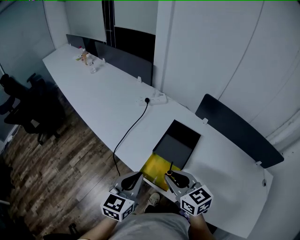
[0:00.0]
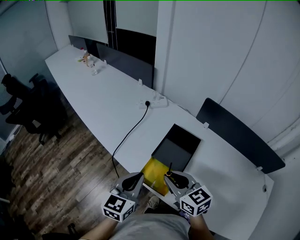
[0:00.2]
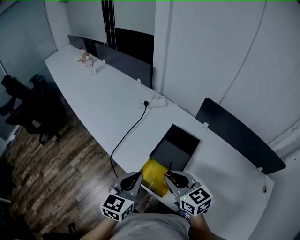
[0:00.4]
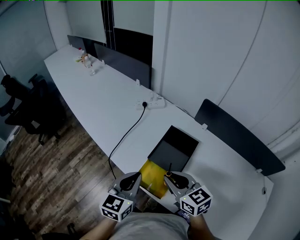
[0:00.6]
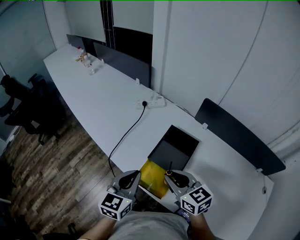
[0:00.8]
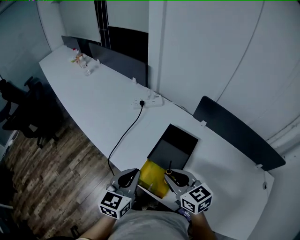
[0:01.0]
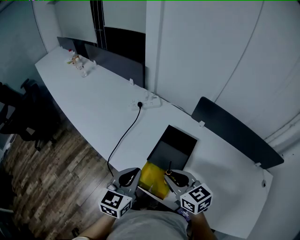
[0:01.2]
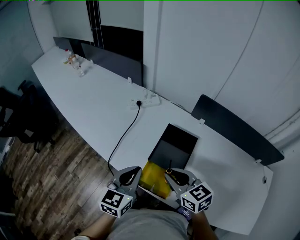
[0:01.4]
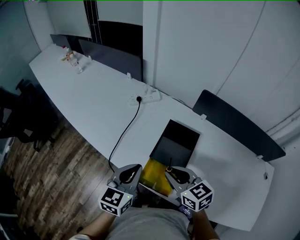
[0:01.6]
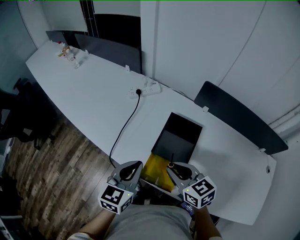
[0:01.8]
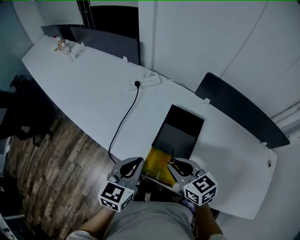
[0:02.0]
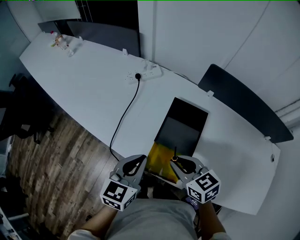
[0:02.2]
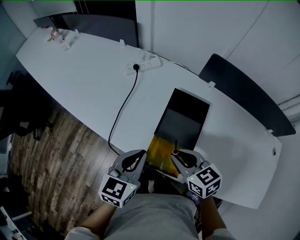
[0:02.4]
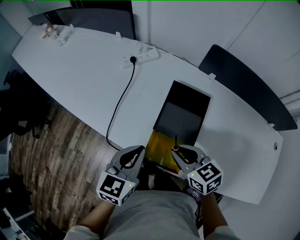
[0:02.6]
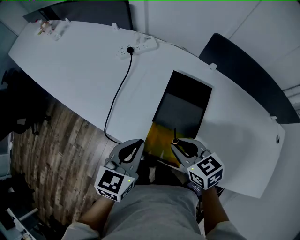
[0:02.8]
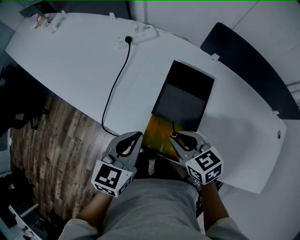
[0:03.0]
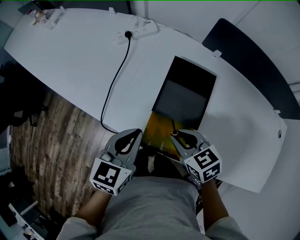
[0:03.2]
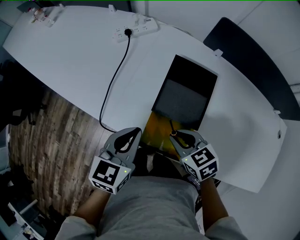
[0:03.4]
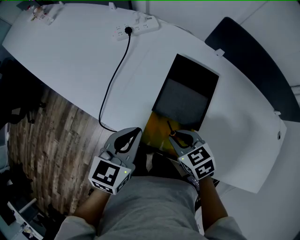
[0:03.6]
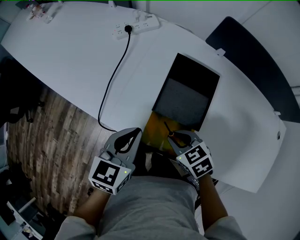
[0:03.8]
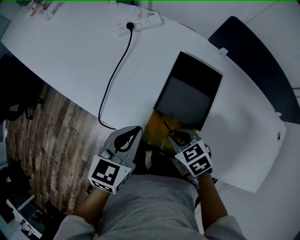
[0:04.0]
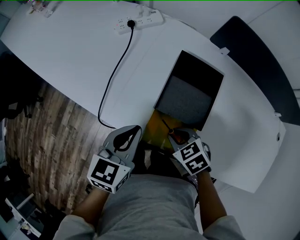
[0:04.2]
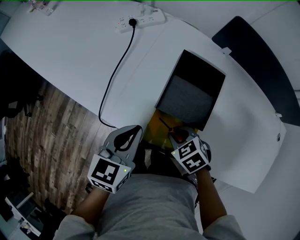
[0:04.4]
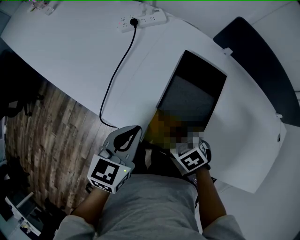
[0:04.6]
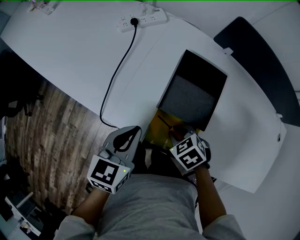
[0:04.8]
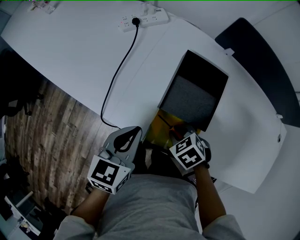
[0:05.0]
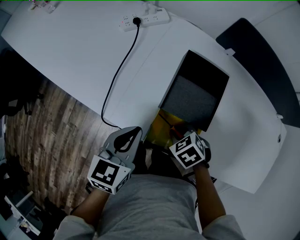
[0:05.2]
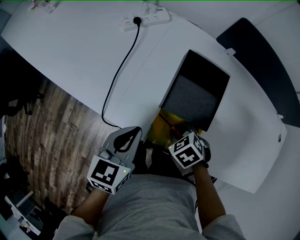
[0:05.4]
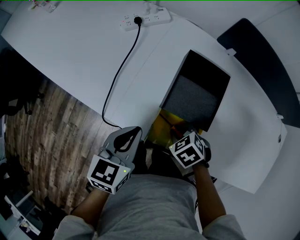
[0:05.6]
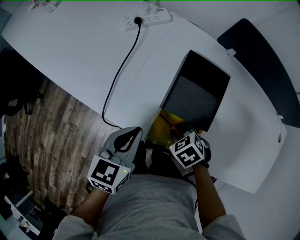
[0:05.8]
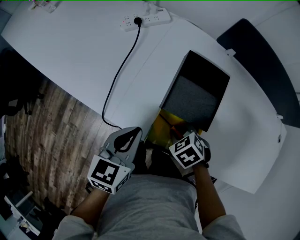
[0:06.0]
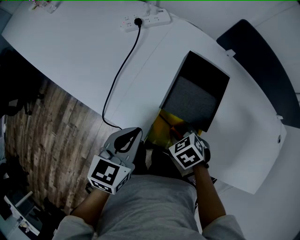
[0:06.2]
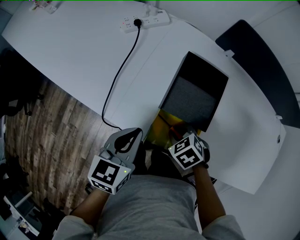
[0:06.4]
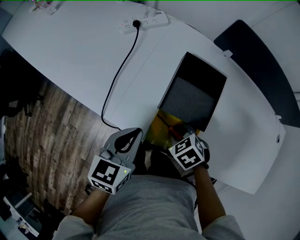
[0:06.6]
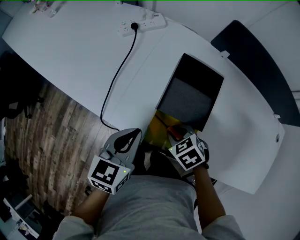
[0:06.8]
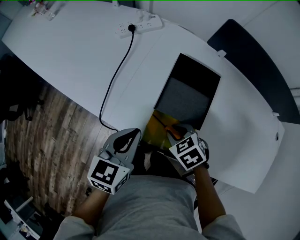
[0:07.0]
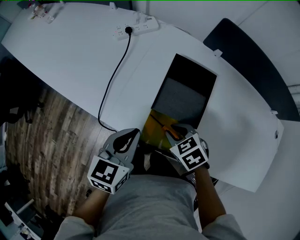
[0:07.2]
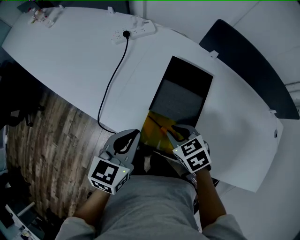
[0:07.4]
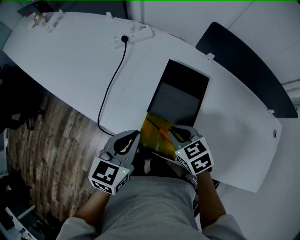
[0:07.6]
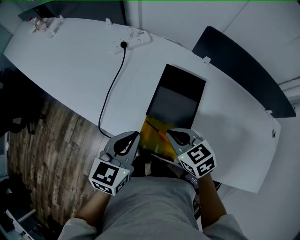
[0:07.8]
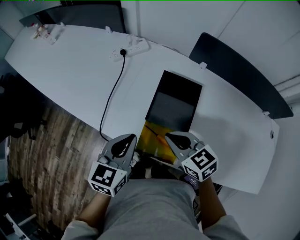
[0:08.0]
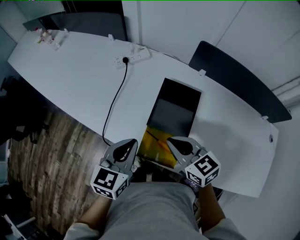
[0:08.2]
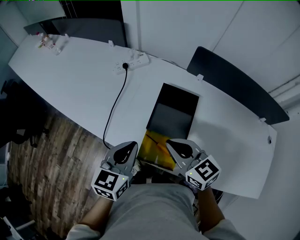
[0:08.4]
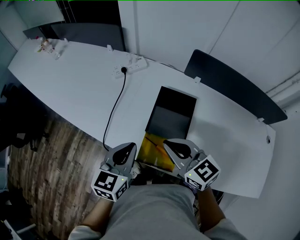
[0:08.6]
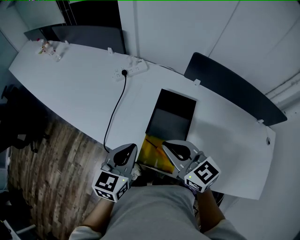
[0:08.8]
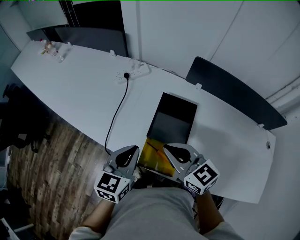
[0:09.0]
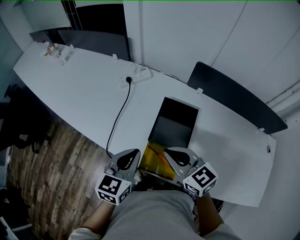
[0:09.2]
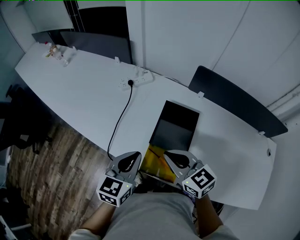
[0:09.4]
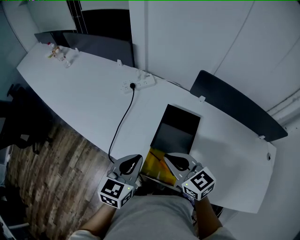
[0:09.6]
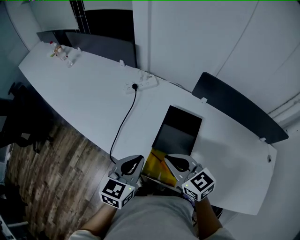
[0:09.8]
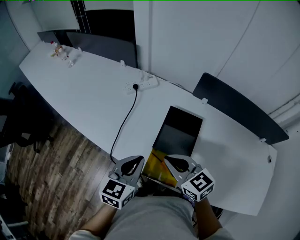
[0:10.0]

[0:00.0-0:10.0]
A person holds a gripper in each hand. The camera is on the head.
0.0 to 1.4 s: Both grippers travel together forward, roughly 5 cm.
1.4 to 2.8 s: The grippers both shift downward by some 10 cm.
2.8 to 4.2 s: The right gripper goes roughly 10 cm downward, and changes its angle by about 30 degrees. Meanwhile the left gripper ends up about 5 cm from where it was.
4.2 to 5.8 s: The grippers make only small movements.
5.8 to 7.2 s: The right gripper shifts approximately 5 cm upward.
7.2 to 8.6 s: The left gripper moves upward, about 5 cm. The right gripper travels upward by about 20 cm, tips its fingers upward by roughly 40 degrees, and closes its fingers.
8.6 to 10.0 s: There are only small adjustments of the grippers.

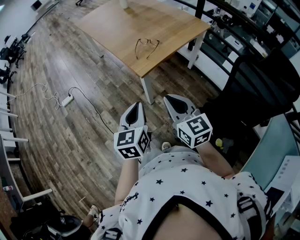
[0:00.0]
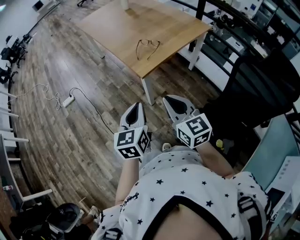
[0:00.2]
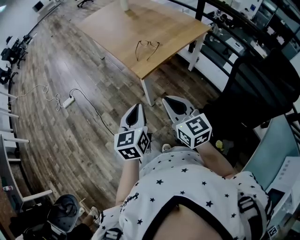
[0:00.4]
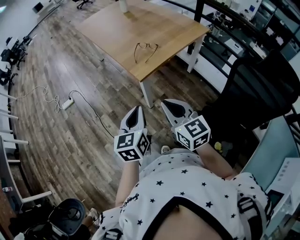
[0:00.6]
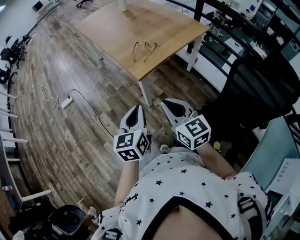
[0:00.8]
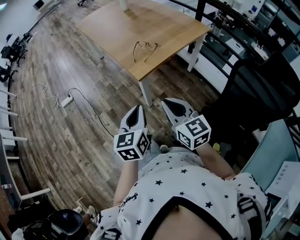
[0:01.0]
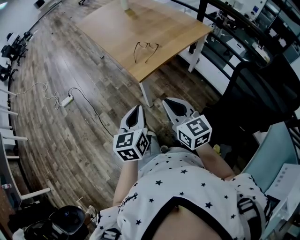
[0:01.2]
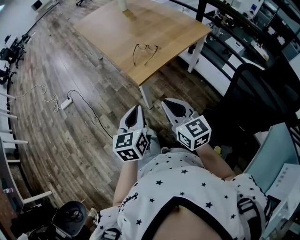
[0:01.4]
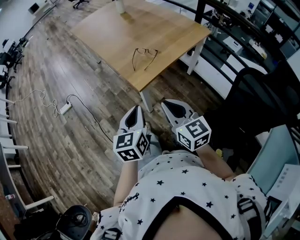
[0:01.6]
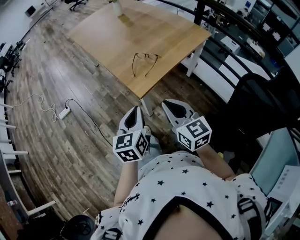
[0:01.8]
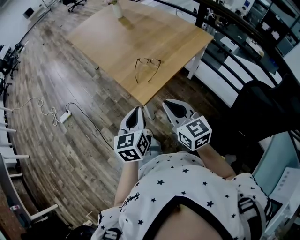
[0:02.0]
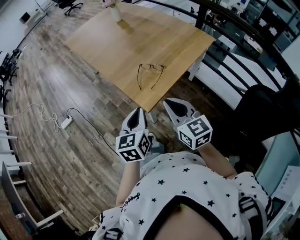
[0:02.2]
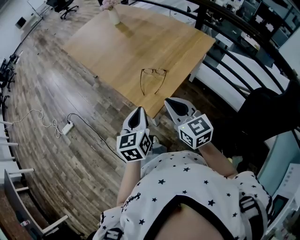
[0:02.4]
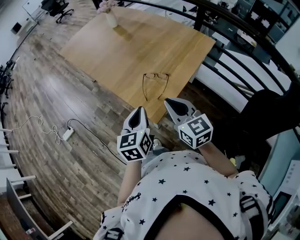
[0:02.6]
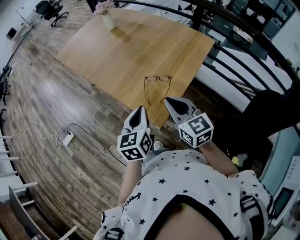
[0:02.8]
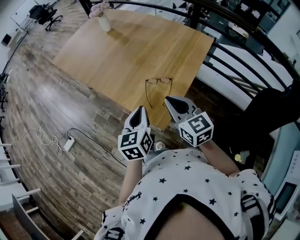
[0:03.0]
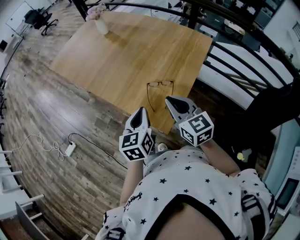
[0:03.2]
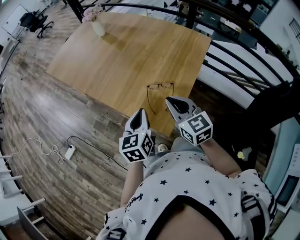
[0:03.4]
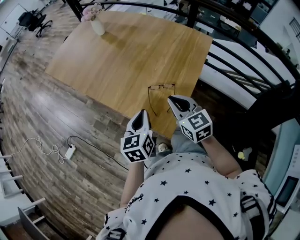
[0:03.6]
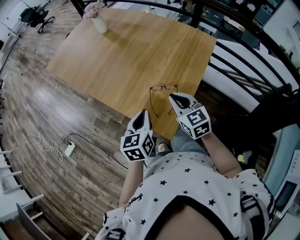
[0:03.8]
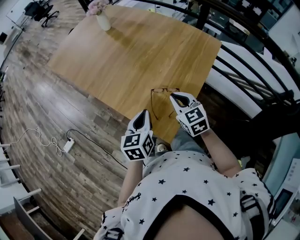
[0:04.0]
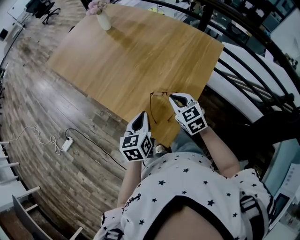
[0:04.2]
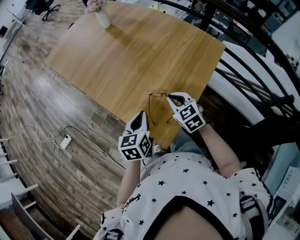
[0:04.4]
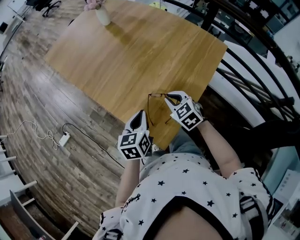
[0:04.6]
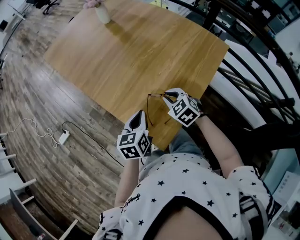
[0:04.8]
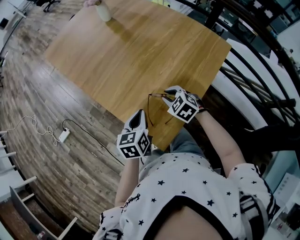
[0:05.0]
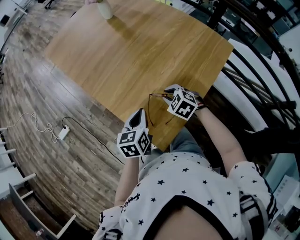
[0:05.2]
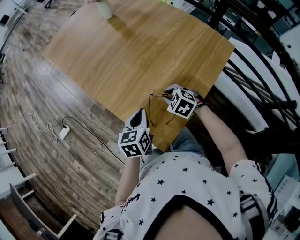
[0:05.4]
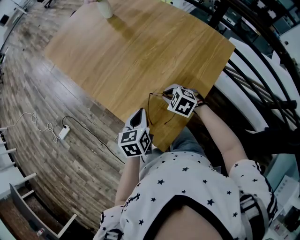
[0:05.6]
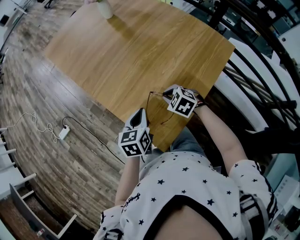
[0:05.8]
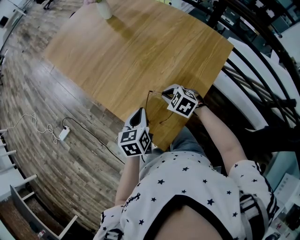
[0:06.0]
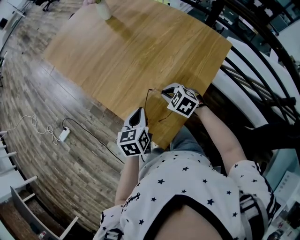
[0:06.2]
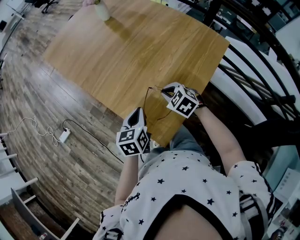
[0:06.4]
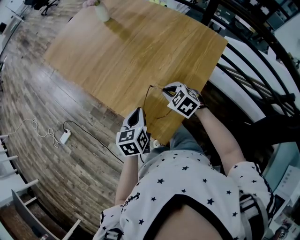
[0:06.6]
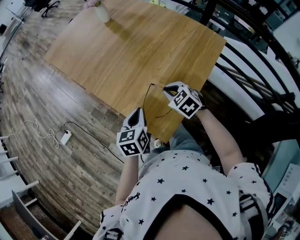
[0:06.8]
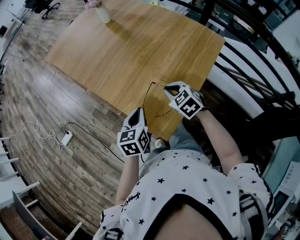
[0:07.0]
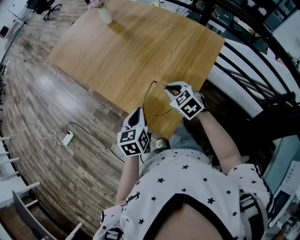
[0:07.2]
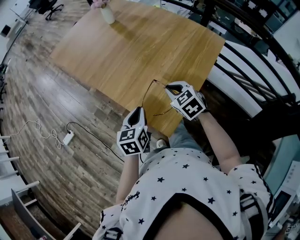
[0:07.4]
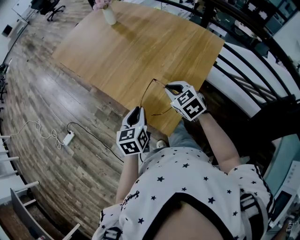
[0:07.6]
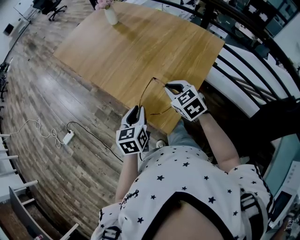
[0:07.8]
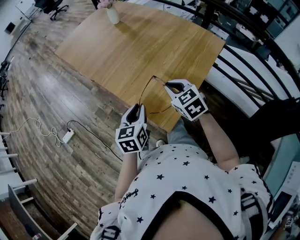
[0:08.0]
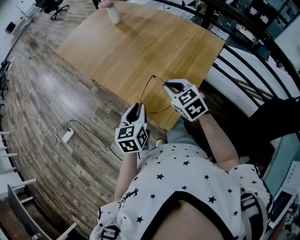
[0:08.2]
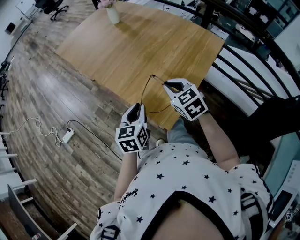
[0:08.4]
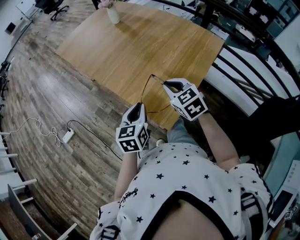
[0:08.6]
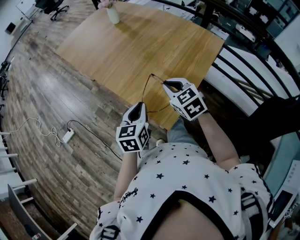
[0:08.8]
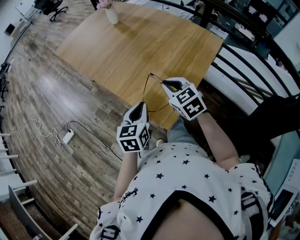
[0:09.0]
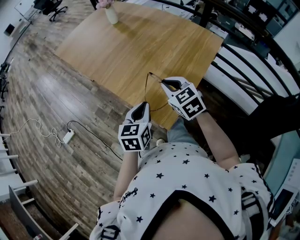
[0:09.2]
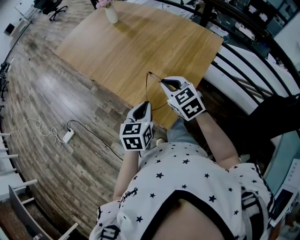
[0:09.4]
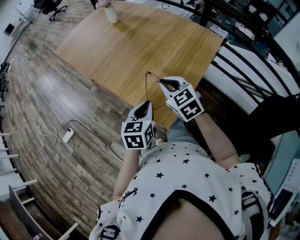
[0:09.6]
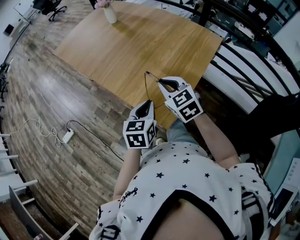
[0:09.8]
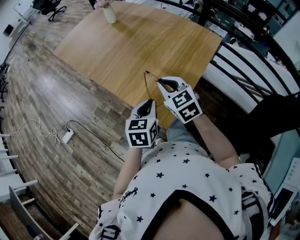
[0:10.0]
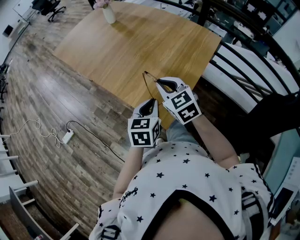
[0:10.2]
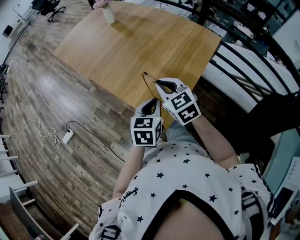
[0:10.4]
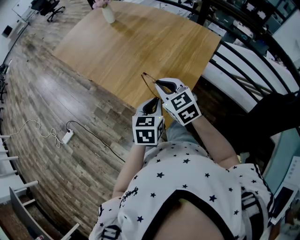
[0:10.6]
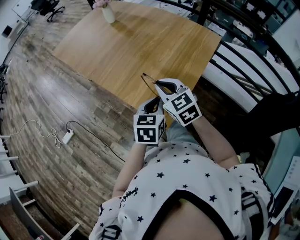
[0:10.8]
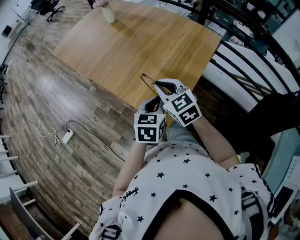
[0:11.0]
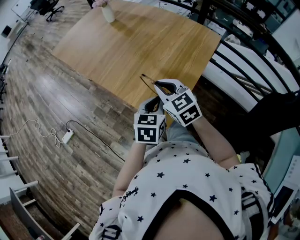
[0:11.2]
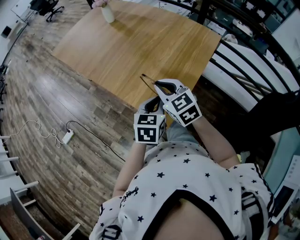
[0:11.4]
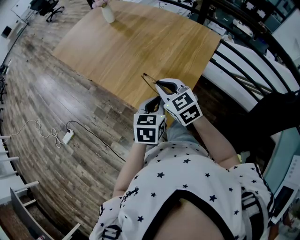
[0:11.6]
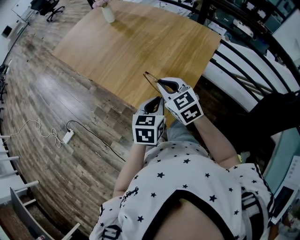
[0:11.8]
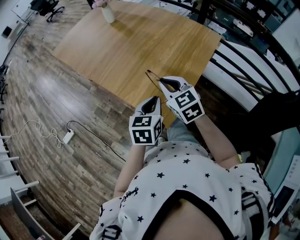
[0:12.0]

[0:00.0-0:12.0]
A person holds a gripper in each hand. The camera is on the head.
0.0 to 1.6 s: Both grippers travel together forward, roughly 5 cm.
1.6 to 3.0 s: Both grippers move forward, roughly 25 cm.
3.0 to 4.4 s: The left gripper shifts about 10 cm forward and downward. Meanwhile the right gripper goes roughly 20 cm forward and downward, and turns by roughly 30 degrees.
4.4 to 6.0 s: The right gripper travels downward by about 5 cm, and swivels some 30 degrees.
6.0 to 7.6 s: The left gripper heads backward, covering roughly 5 cm. Meanwhile the right gripper shifts about 10 cm upward and backward, and rotates about 30 degrees.
7.6 to 9.0 s: The grippers stay close to where they were, moving slightly.
9.0 to 10.4 s: The left gripper heads to the right, covering about 5 cm.
10.4 to 12.0 s: There are only small adjustments of the grippers.

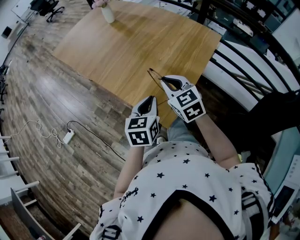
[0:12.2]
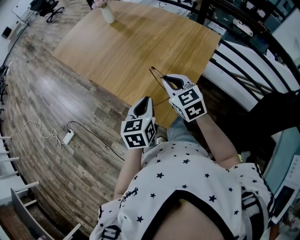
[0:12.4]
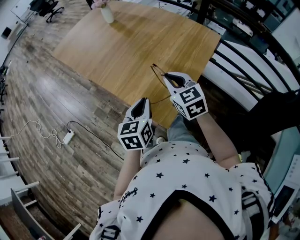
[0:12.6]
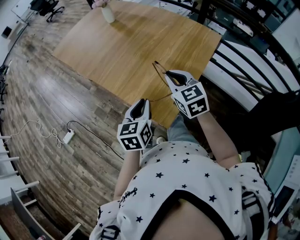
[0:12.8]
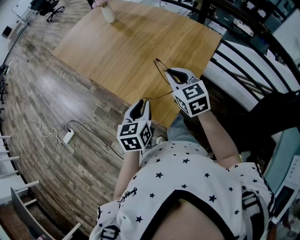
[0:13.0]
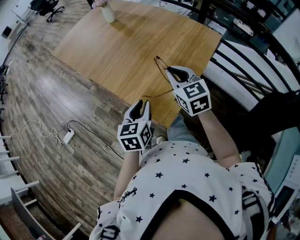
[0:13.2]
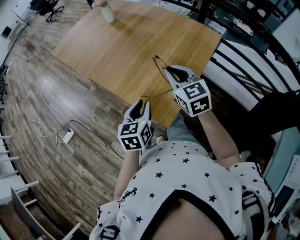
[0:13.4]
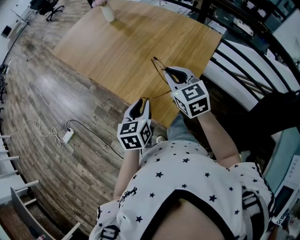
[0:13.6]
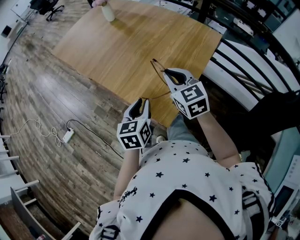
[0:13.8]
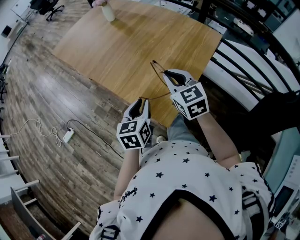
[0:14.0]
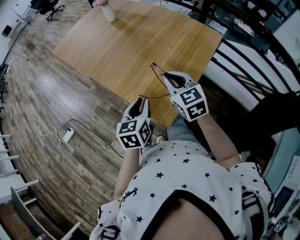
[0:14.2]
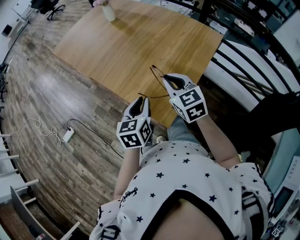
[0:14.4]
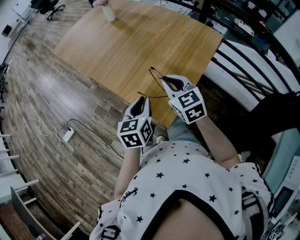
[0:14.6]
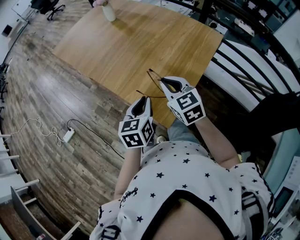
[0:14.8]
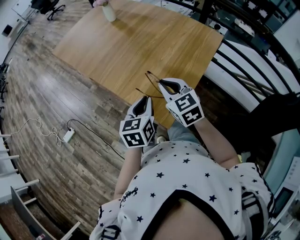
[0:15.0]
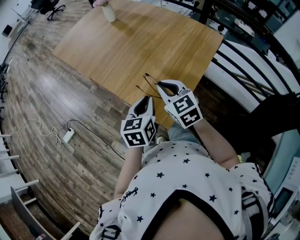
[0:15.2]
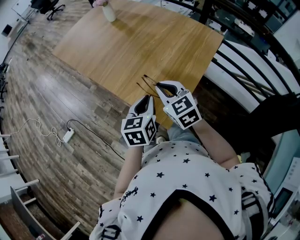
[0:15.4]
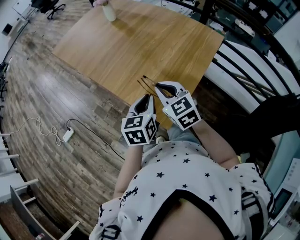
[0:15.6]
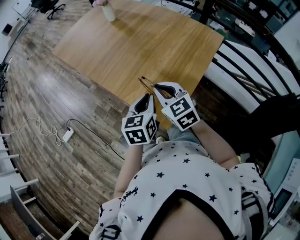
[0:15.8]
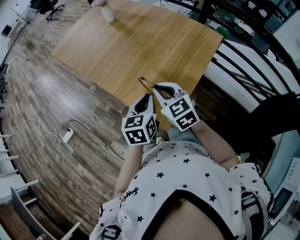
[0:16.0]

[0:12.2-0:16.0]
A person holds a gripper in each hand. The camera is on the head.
12.2 to 13.4 s: The right gripper moves about 5 cm.
13.4 to 14.8 s: The right gripper moves some 5 cm.
14.8 to 16.0 s: The grippers move only a little.
